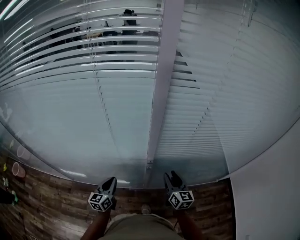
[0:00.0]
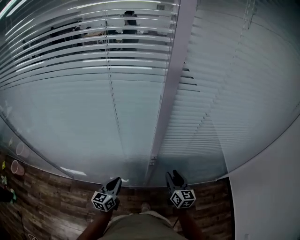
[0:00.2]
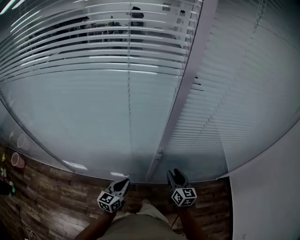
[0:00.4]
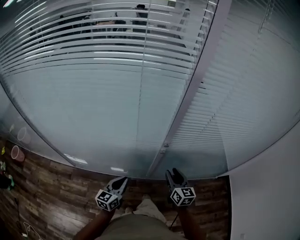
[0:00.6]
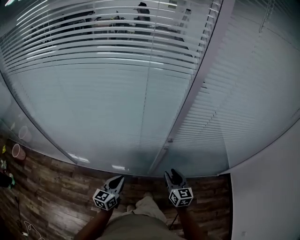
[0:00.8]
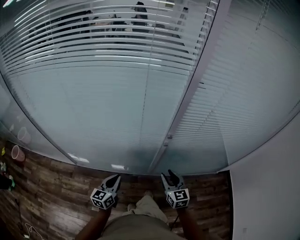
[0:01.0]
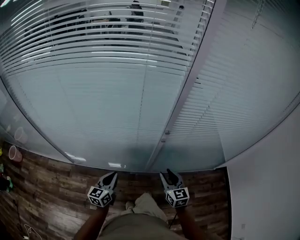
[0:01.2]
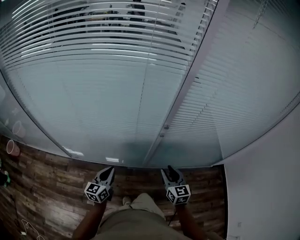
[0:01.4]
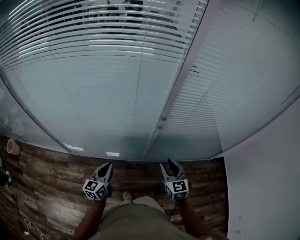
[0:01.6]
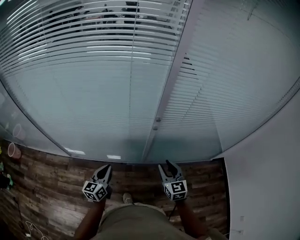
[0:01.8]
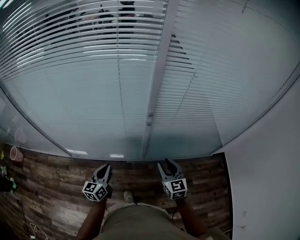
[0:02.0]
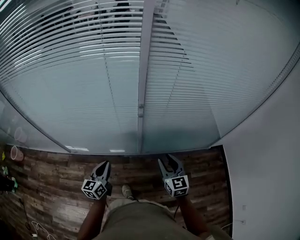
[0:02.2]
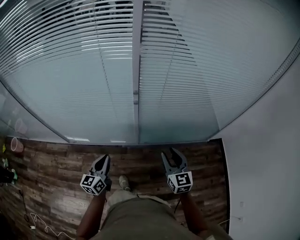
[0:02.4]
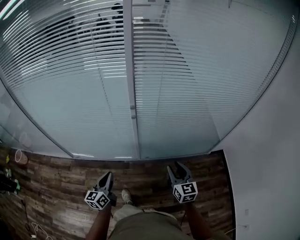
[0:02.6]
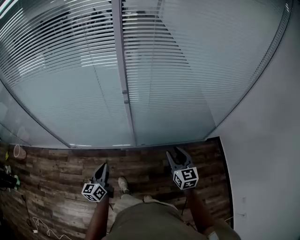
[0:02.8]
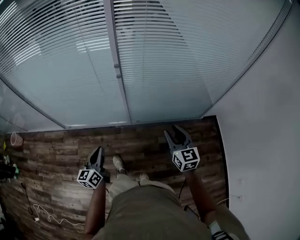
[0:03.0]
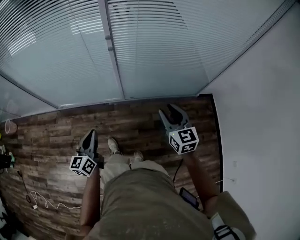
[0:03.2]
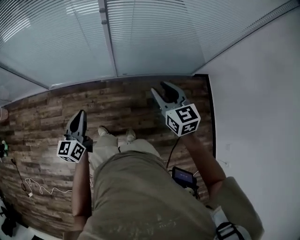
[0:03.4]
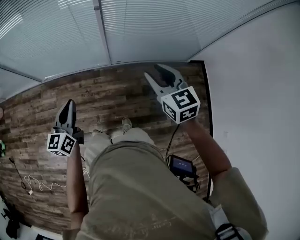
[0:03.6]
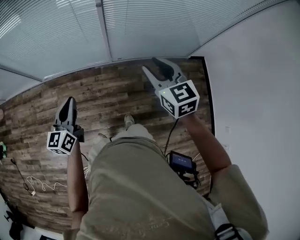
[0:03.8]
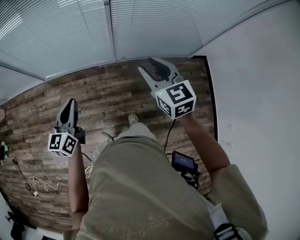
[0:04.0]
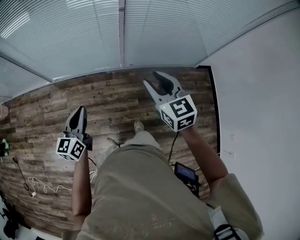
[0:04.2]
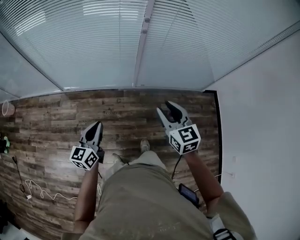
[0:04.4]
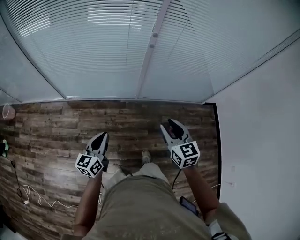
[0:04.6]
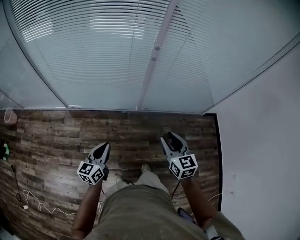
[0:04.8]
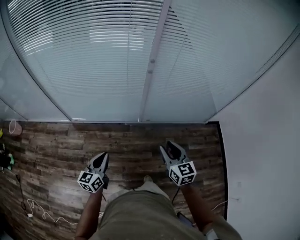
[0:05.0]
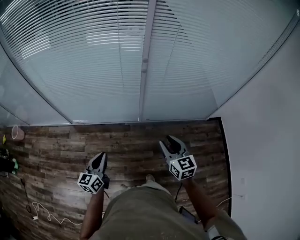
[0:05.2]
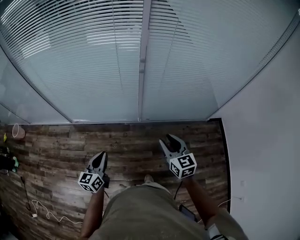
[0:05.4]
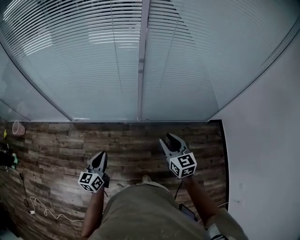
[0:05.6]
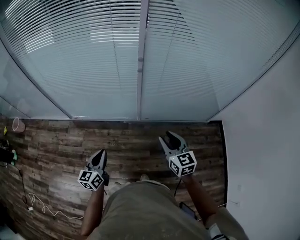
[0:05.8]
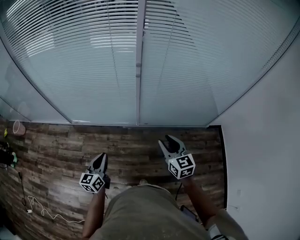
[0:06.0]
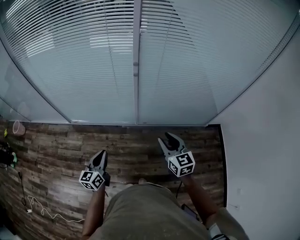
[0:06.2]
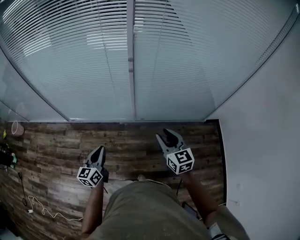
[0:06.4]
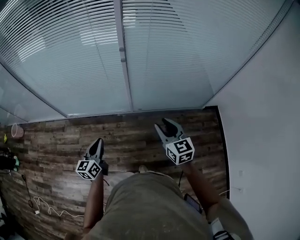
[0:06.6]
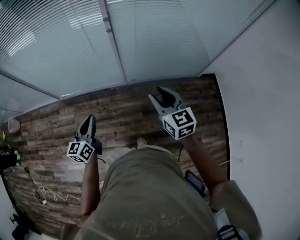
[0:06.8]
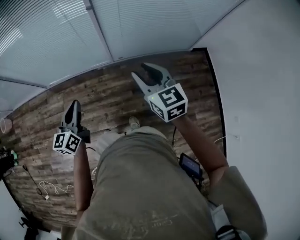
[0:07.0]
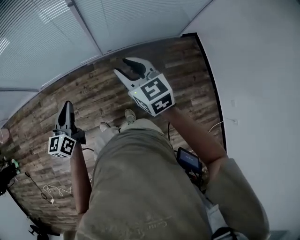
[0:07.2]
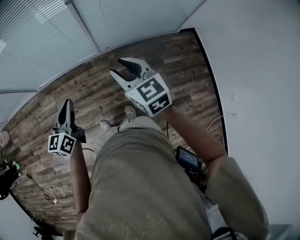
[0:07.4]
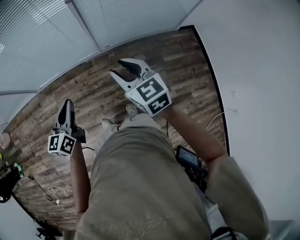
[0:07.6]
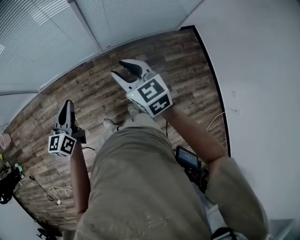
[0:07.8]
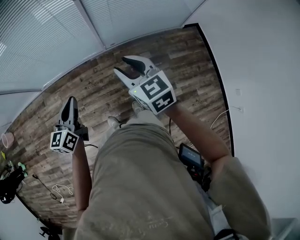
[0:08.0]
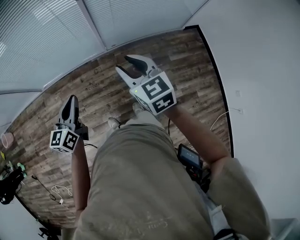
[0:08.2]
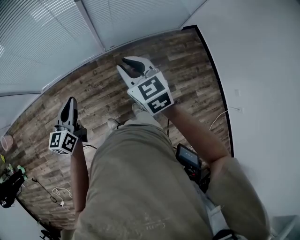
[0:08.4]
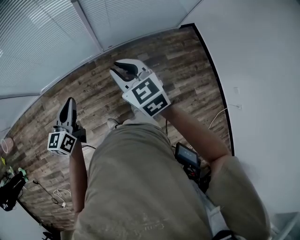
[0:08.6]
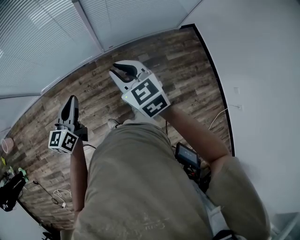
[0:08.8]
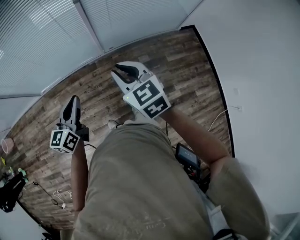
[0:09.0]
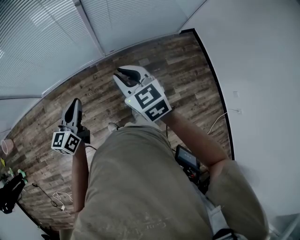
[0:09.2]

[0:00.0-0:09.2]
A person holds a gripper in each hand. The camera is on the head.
0:00.0 to 0:01.6: Both grippers move backward and to the left, some 20 cm. The right gripper changes its angle by roughly 20 degrees.
0:01.6 to 0:03.0: The left gripper travels backward and to the right by roughly 30 cm, while the right gripper travels to the right and backward by about 35 cm.
0:03.0 to 0:04.6: The two grippers go about 25 cm to the left and backward.
0:04.6 to 0:06.2: The grippers both shift to the right and forward by roughly 15 cm.
0:06.2 to 0:07.6: The right gripper heads backward, covering roughly 5 cm. Meanwhile the left gripper heads to the right, covering some 5 cm.
0:07.6 to 0:09.2: The right gripper is displaced to the left by roughly 10 cm, and closes.

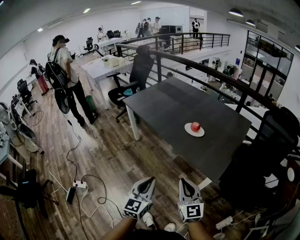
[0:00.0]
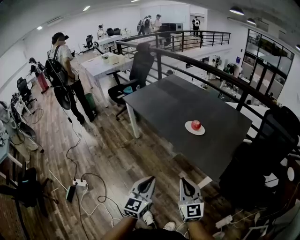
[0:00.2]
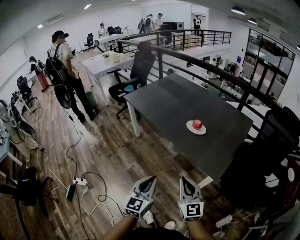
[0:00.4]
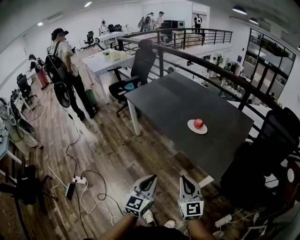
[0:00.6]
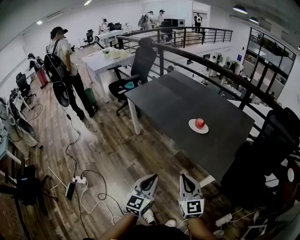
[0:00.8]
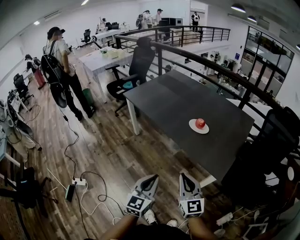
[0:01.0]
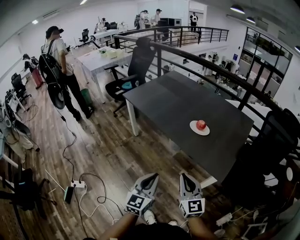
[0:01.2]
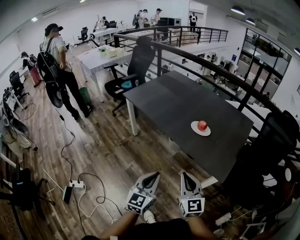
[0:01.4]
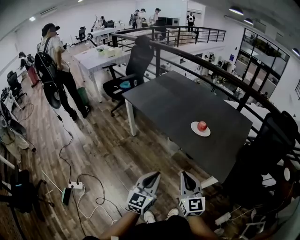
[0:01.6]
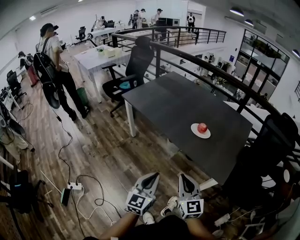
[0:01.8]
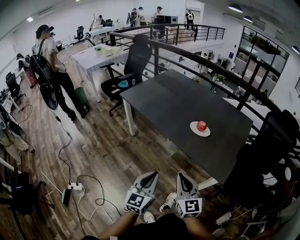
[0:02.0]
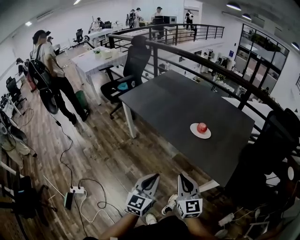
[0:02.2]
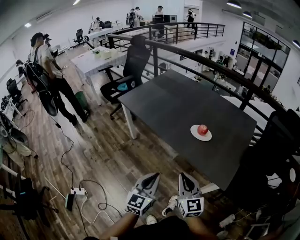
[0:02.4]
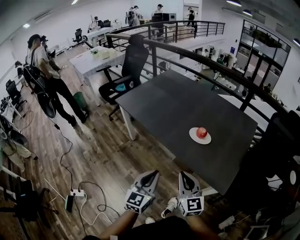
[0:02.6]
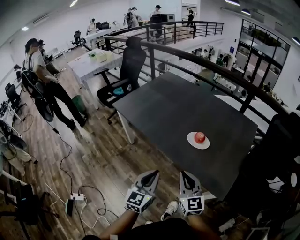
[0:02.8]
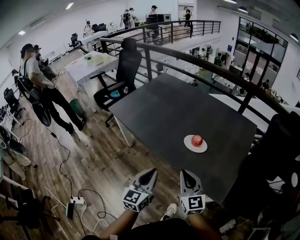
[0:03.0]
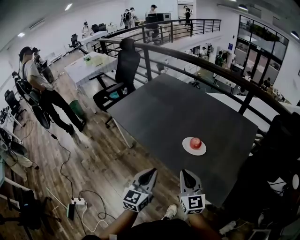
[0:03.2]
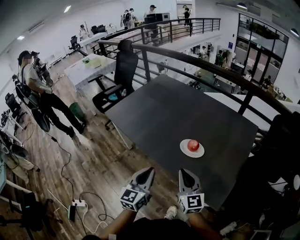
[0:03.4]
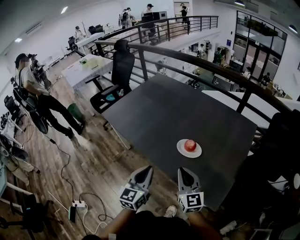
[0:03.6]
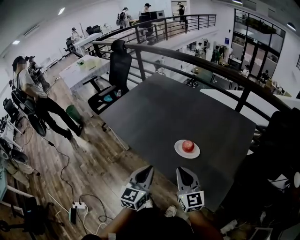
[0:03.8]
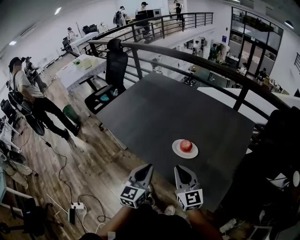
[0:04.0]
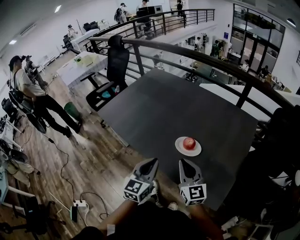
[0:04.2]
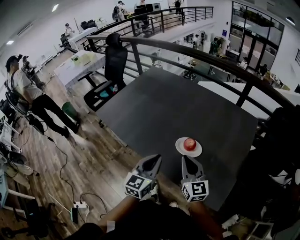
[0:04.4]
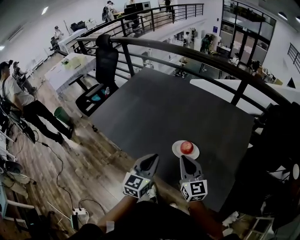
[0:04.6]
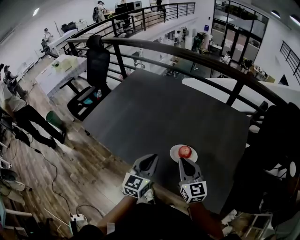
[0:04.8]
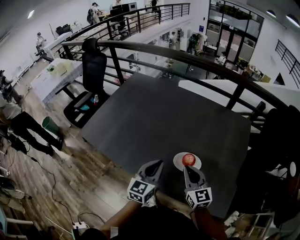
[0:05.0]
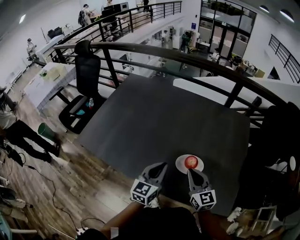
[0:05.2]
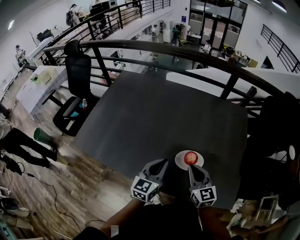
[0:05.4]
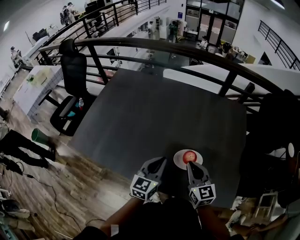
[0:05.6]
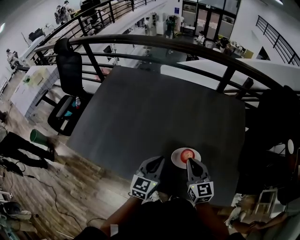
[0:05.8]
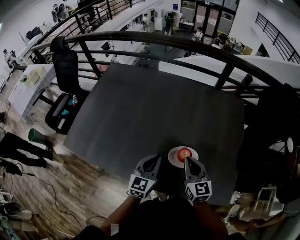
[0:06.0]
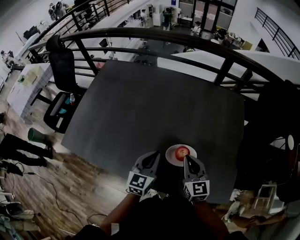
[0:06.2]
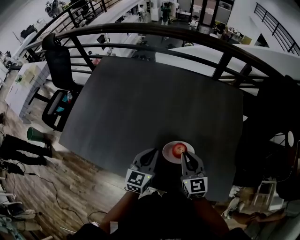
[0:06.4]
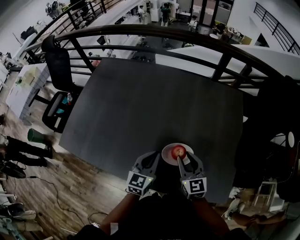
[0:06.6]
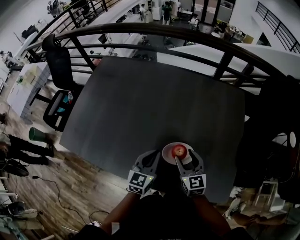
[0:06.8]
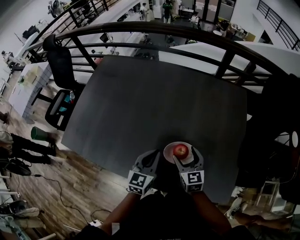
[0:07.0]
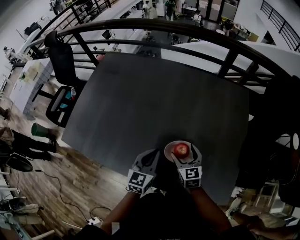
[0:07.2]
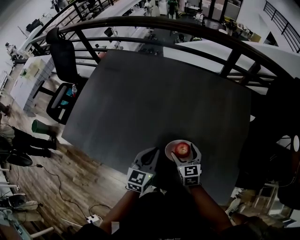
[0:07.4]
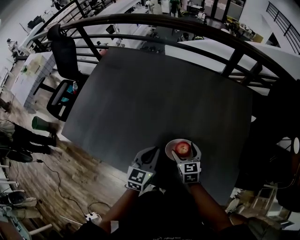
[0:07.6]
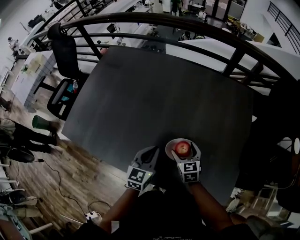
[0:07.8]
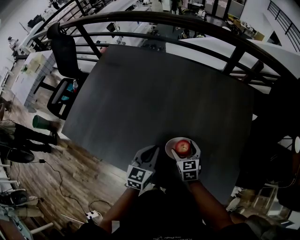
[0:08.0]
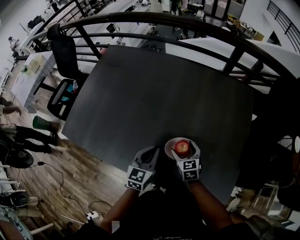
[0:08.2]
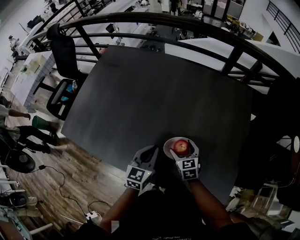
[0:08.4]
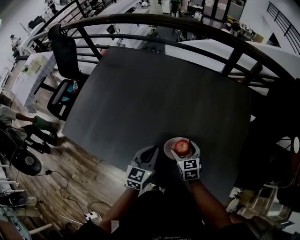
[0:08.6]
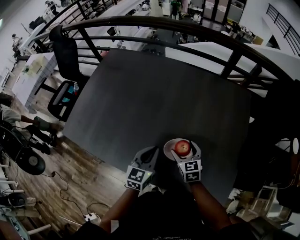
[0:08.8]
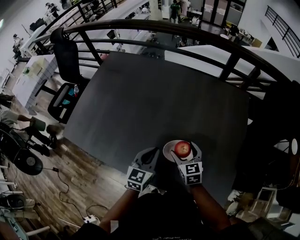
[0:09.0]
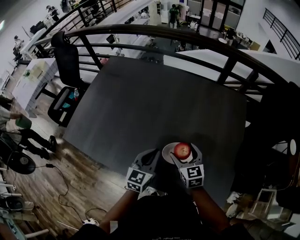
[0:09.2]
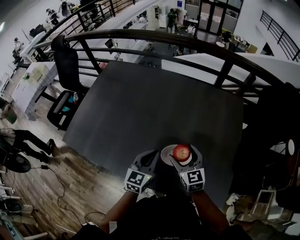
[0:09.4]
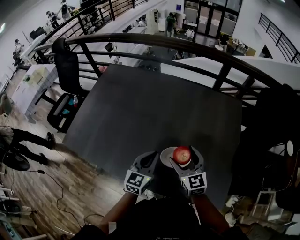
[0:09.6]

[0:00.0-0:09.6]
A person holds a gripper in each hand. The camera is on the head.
0:00.0 to 0:01.6: The grippers both shift to the left and forward by roughly 10 cm.
0:01.6 to 0:03.2: The grippers both shift forward by roughly 20 cm.
0:03.2 to 0:04.8: The grippers both shift forward by some 20 cm.
0:04.8 to 0:06.4: The grippers both shift forward and downward by some 10 cm.
0:06.4 to 0:08.0: The right gripper heads downward, covering roughly 15 cm, rotates some 20 degrees, and opens its fingers.
0:08.0 to 0:09.6: The right gripper travels upward by about 15 cm, and rotates roughly 20 degrees. Meanwhile the left gripper is displaced upward by some 5 cm.

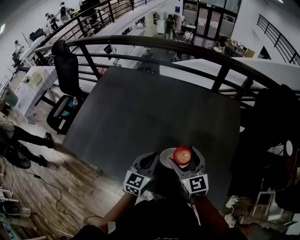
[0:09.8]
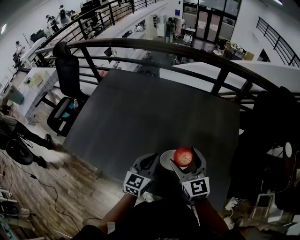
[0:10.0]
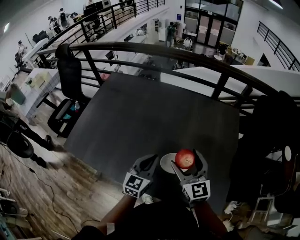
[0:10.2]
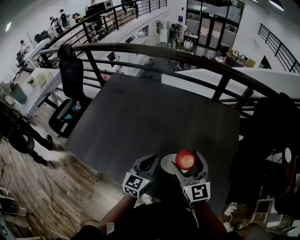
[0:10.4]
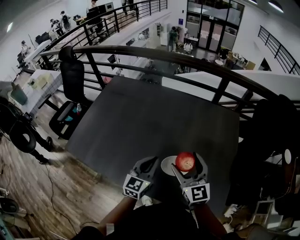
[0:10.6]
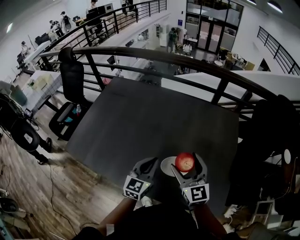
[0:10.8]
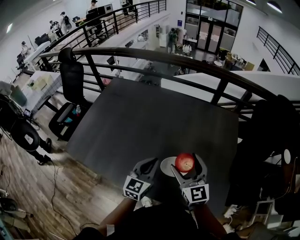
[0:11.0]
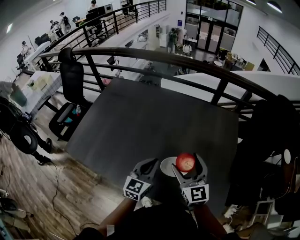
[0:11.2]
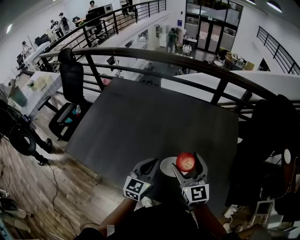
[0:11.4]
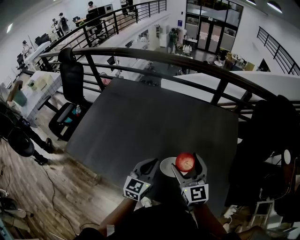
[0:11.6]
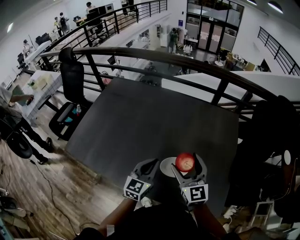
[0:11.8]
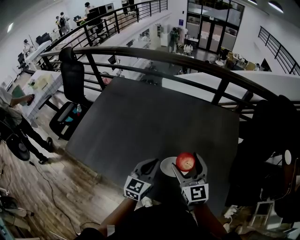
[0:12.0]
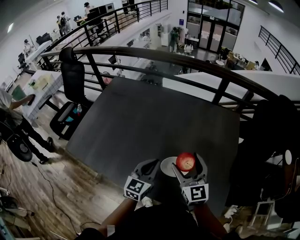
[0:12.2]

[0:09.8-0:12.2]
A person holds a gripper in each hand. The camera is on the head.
0:09.8 to 0:11.0: The right gripper travels upward by about 5 cm.
0:11.0 to 0:12.2: Neither gripper changes place.

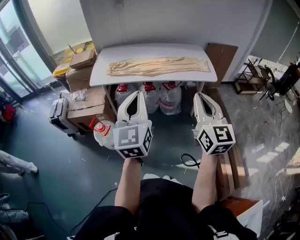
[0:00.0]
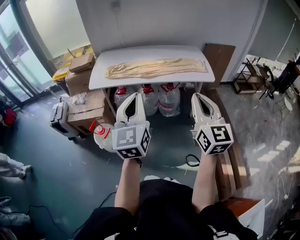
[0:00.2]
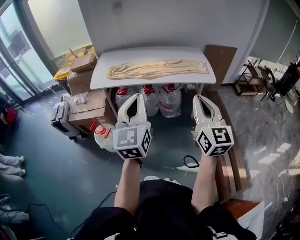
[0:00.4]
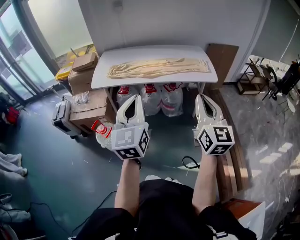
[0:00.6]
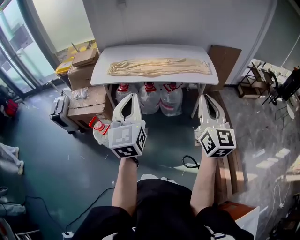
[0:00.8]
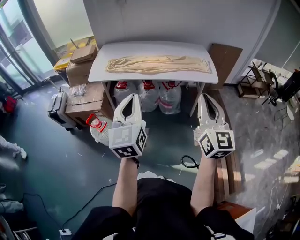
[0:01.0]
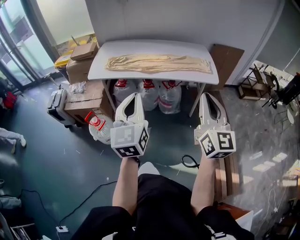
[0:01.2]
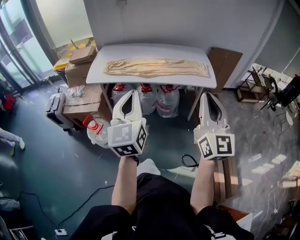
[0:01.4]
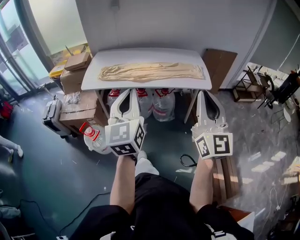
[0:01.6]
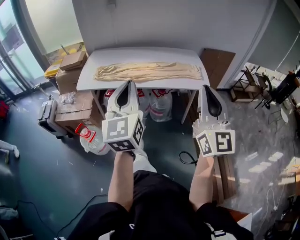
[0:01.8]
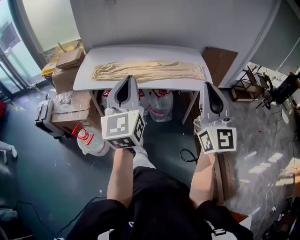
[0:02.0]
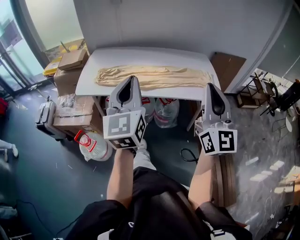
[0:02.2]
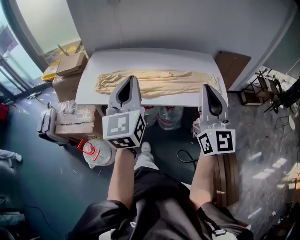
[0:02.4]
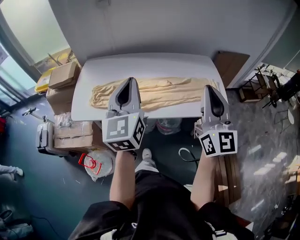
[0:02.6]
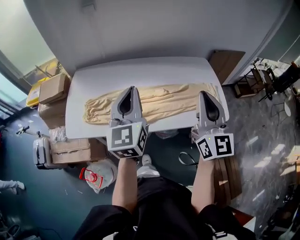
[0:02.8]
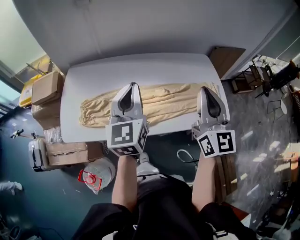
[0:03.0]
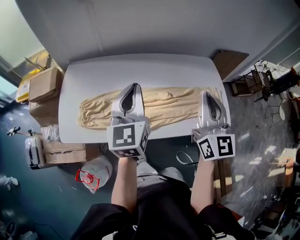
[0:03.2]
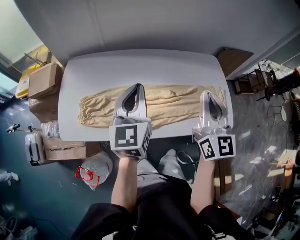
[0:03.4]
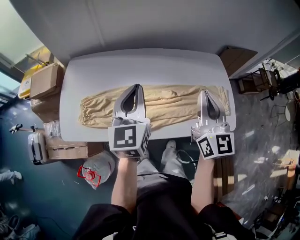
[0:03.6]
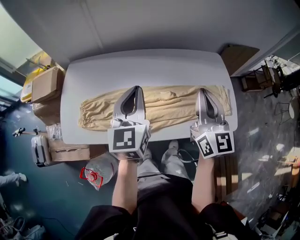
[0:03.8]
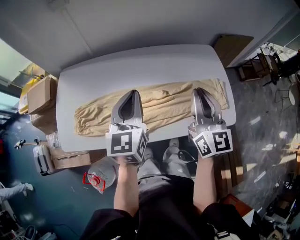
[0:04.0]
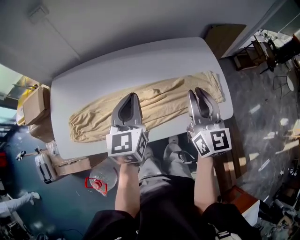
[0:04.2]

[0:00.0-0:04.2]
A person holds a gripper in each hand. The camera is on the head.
0:00.0 to 0:01.4: The left gripper ends up some 5 cm from where it was, while the right gripper moves to the right, approximately 5 cm.
0:01.4 to 0:02.8: The two grippers travel together, forward, approximately 50 cm.
0:02.8 to 0:04.2: Both grippers travel together forward, downward and to the right, about 20 cm.
